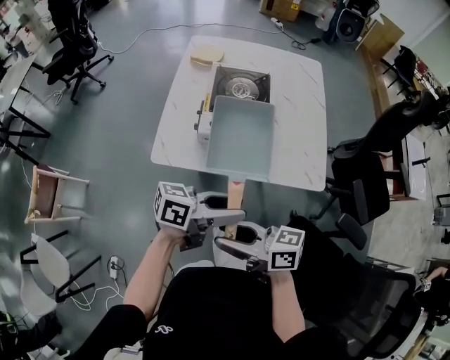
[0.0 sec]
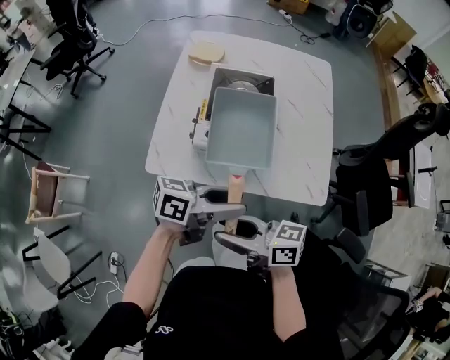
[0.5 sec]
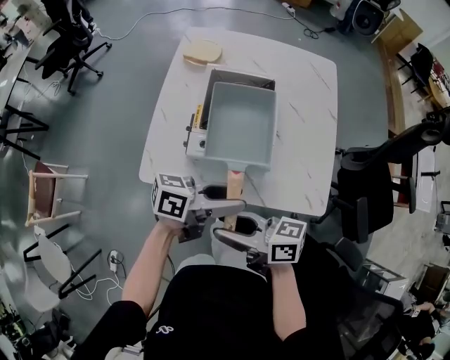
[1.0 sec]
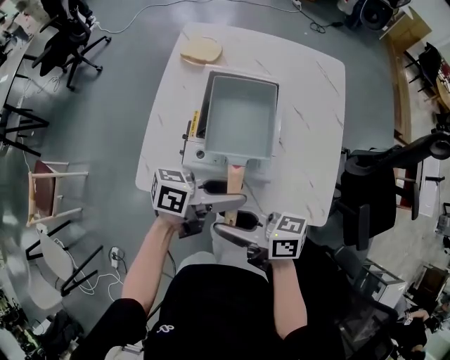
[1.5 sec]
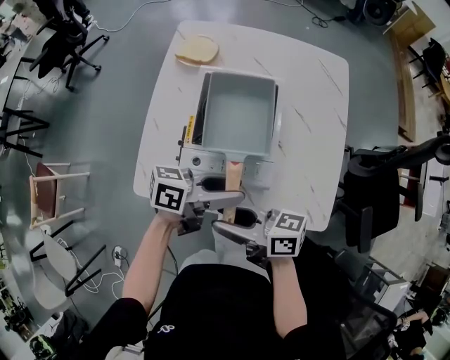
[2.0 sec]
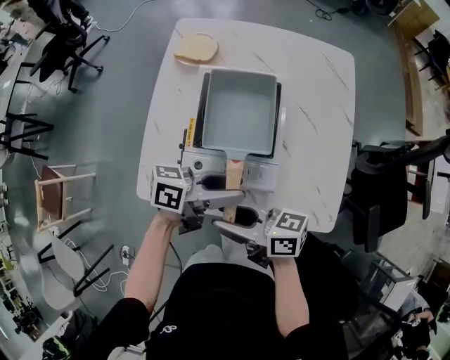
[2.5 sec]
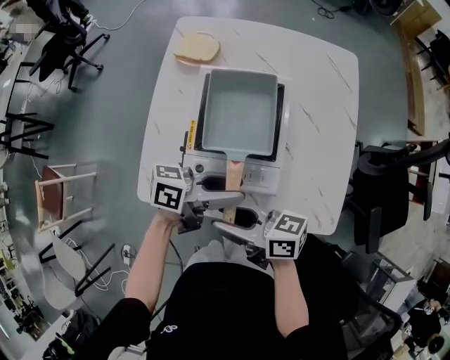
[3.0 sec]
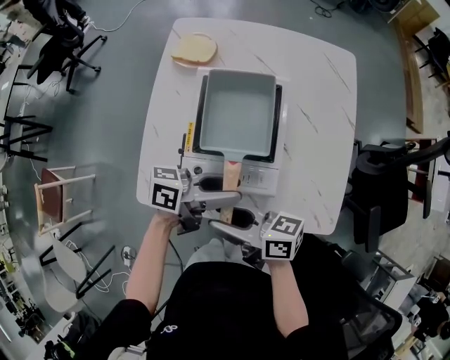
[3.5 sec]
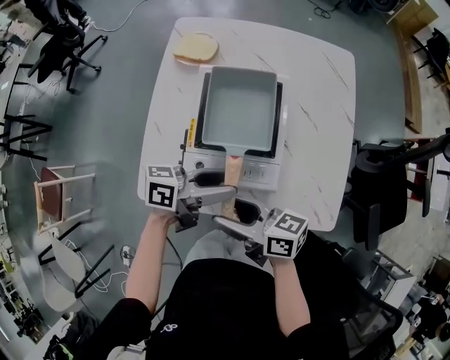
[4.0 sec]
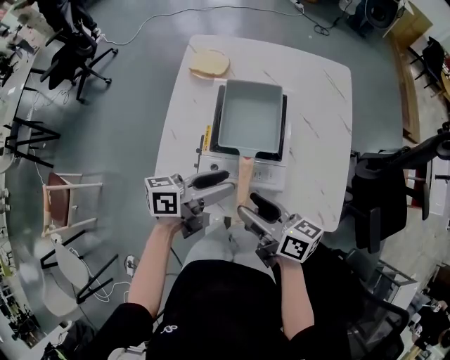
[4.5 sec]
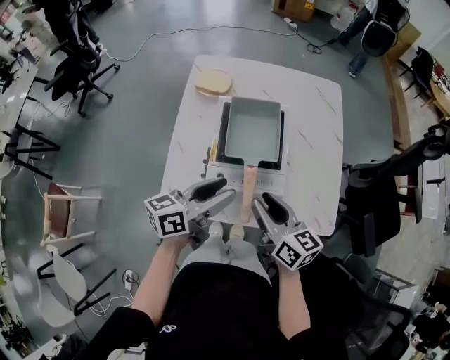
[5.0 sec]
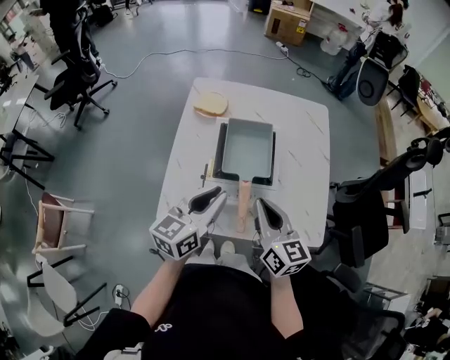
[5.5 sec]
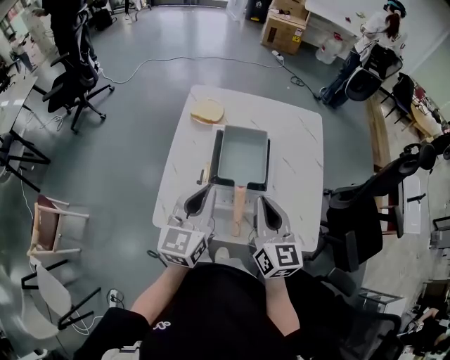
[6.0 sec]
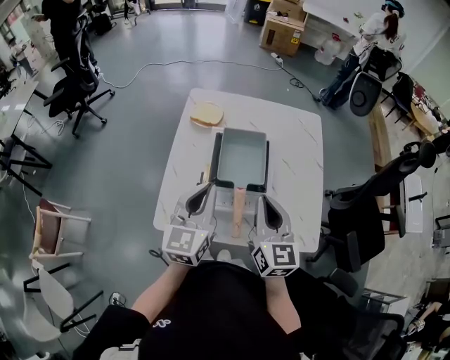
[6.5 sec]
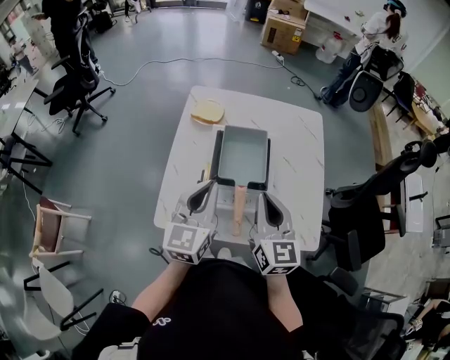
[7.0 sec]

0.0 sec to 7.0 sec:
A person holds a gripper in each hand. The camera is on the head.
0.0 sec to 2.0 sec: The left gripper ends up roughly 25 cm from where it was, while the right gripper ends up some 25 cm from where it was.
2.0 sec to 3.5 sec: The grippers move only a little.
3.5 sec to 5.0 sec: The left gripper changes place by about 10 cm, and rotates some 30 degrees. The right gripper changes place by about 10 cm, and changes its angle by about 40 degrees.
5.0 sec to 7.0 sec: The grippers both shift upward by approximately 10 cm. The left gripper changes its angle by roughly 50 degrees, and closes up. Meanwhile the right gripper rotates approximately 30 degrees, and closes its fingers.

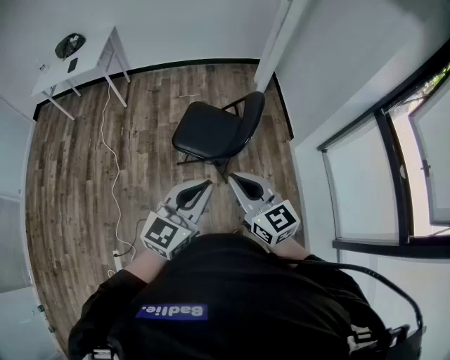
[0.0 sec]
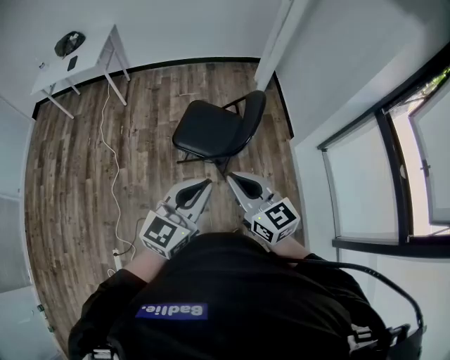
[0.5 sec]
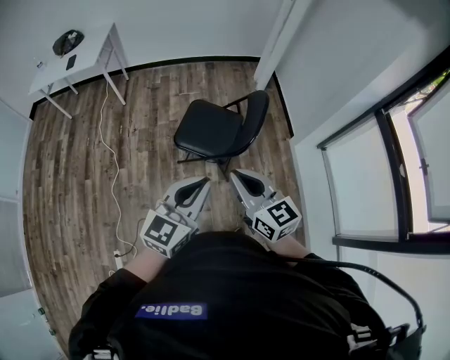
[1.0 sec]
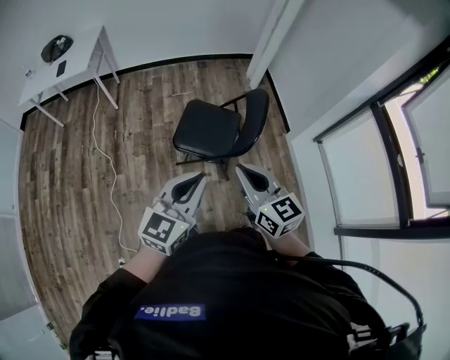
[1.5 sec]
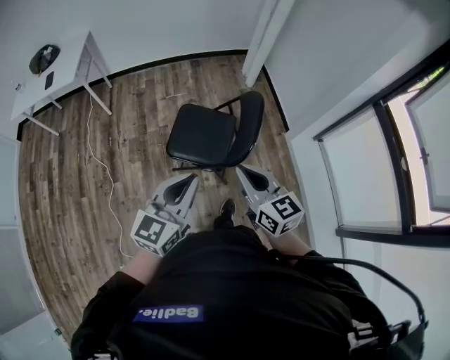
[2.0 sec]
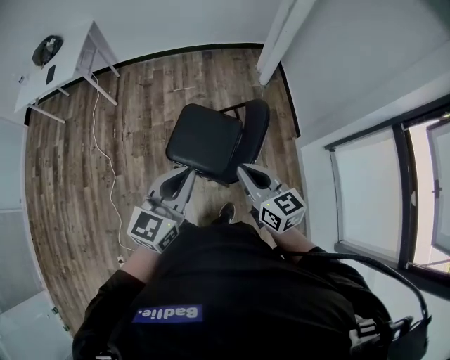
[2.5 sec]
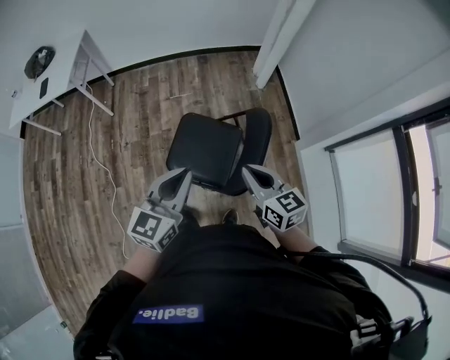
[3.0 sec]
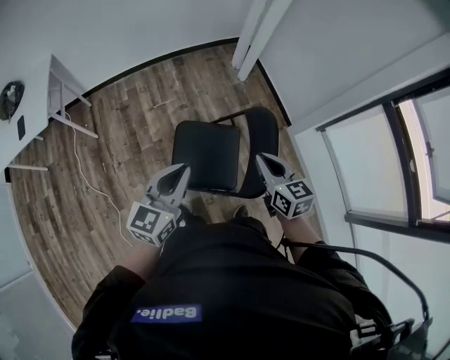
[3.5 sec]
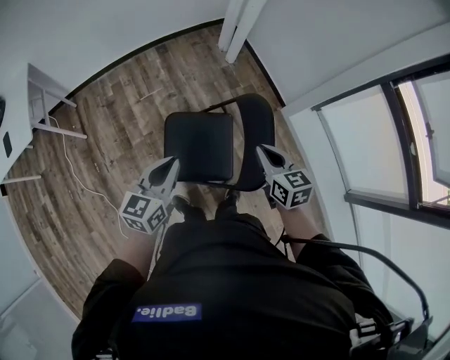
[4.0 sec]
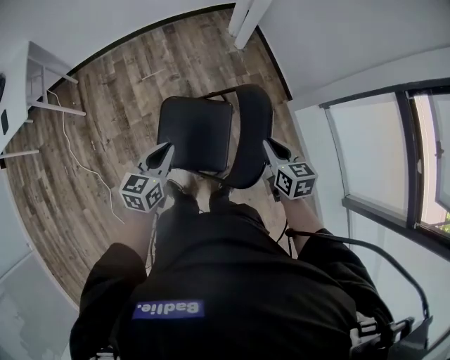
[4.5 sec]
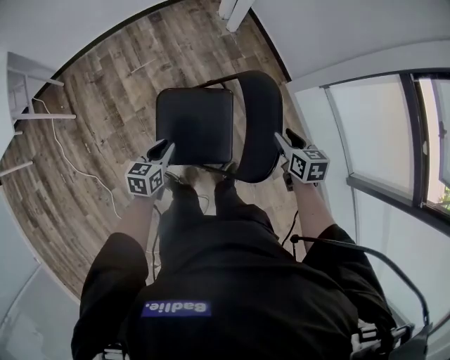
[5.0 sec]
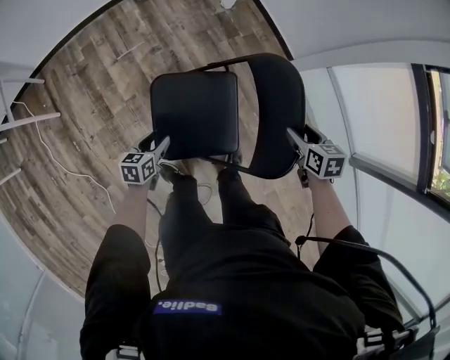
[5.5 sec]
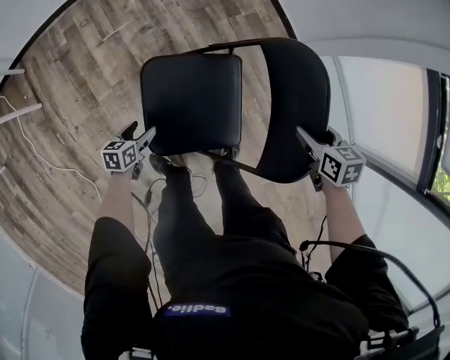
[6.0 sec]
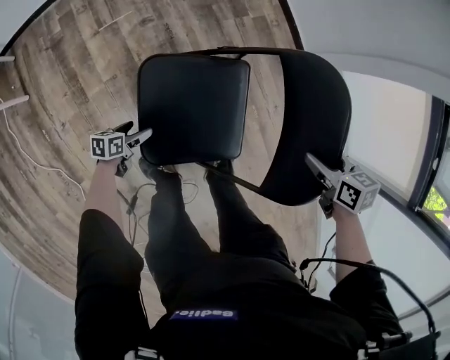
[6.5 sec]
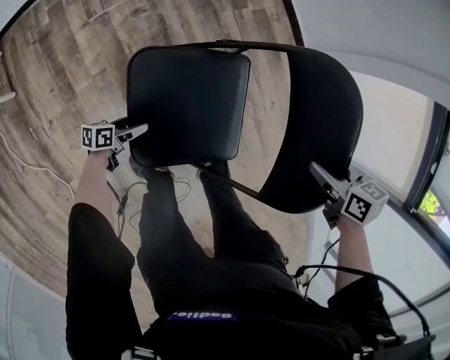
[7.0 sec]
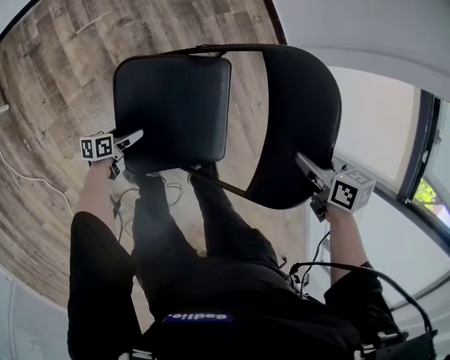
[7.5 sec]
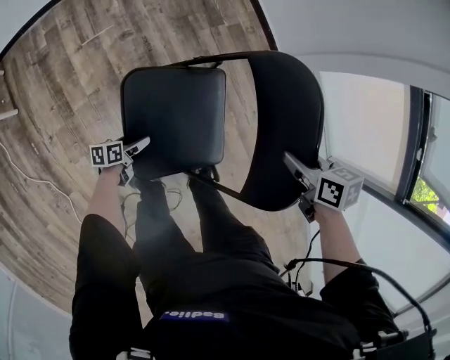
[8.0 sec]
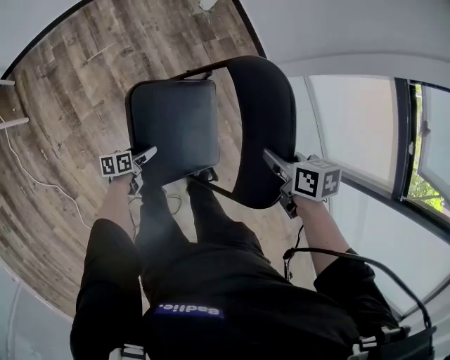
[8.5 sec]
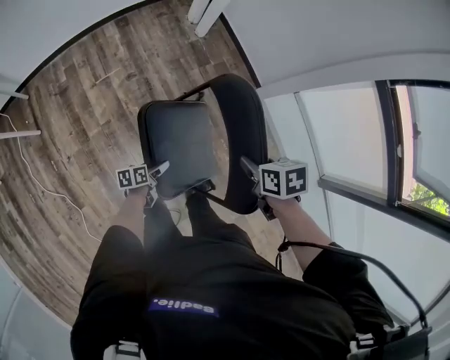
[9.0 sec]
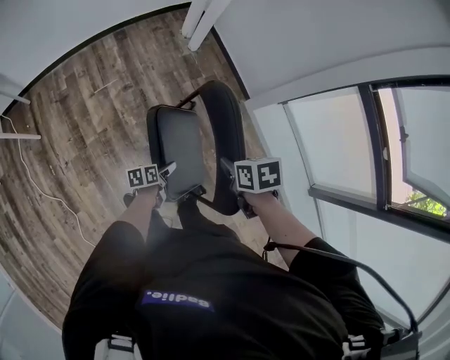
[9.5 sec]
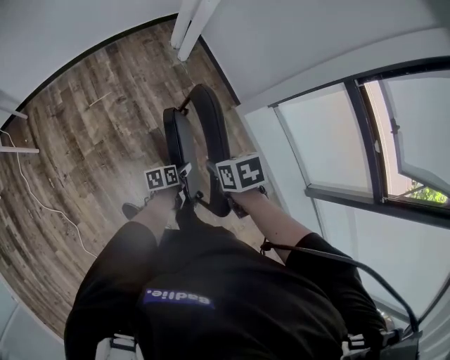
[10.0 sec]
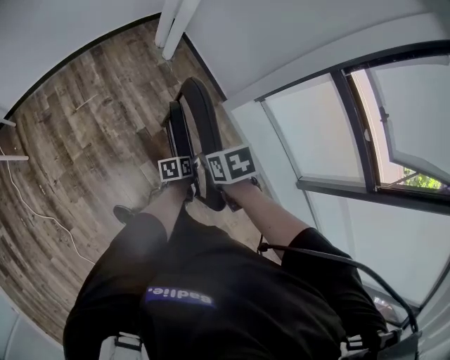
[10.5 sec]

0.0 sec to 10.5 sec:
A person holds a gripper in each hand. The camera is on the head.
0.0 sec to 2.0 sec: The right gripper is displaced forward by roughly 15 cm, while the left gripper moves forward and to the left, roughly 15 cm.
2.0 sec to 4.0 sec: The right gripper moves forward and downward, approximately 35 cm, and changes its angle by about 30 degrees, while the left gripper moves forward, approximately 35 cm.
4.0 sec to 6.5 sec: The right gripper travels downward by roughly 30 cm, tips its fingers downward by some 30 degrees, and opens; the left gripper moves downward, approximately 60 cm, changes its angle by approximately 50 degrees, and opens its fingers.
6.5 sec to 8.5 sec: The left gripper heads to the right and upward, covering about 15 cm, while the right gripper heads upward, covering about 10 cm, and closes its fingers.
8.5 sec to 10.5 sec: The left gripper heads to the right and upward, covering about 40 cm, and closes up. The right gripper is displaced upward by about 15 cm.

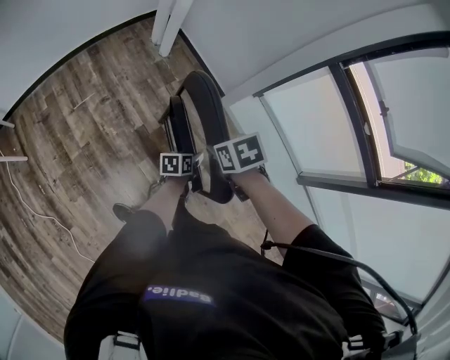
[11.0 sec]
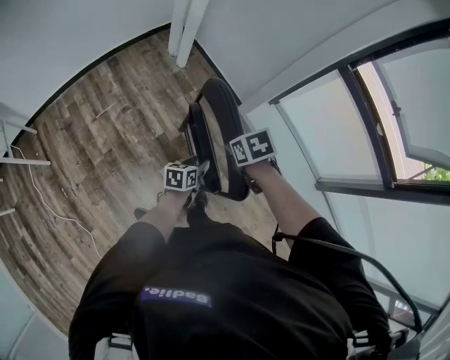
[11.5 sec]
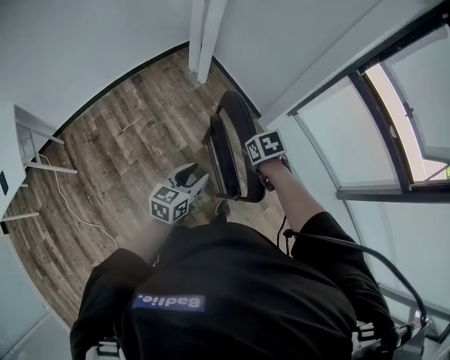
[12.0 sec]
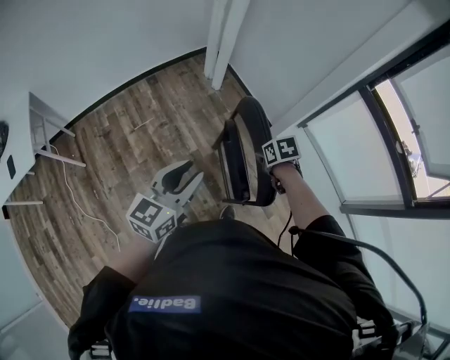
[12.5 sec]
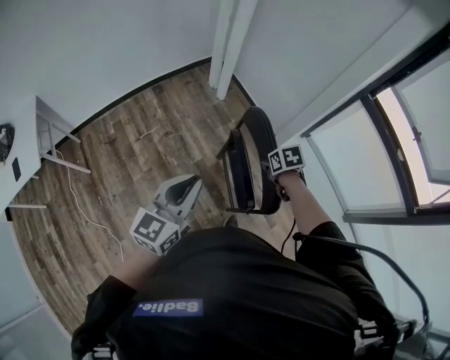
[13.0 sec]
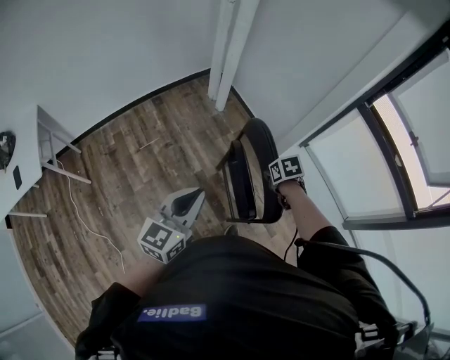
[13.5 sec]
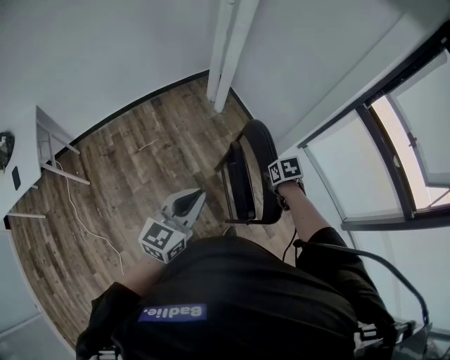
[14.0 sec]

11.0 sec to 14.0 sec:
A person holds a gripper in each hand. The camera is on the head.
11.0 sec to 12.5 sec: The left gripper is displaced upward and to the left by about 40 cm, and changes its angle by approximately 50 degrees.
12.5 sec to 14.0 sec: The grippers make only small movements.

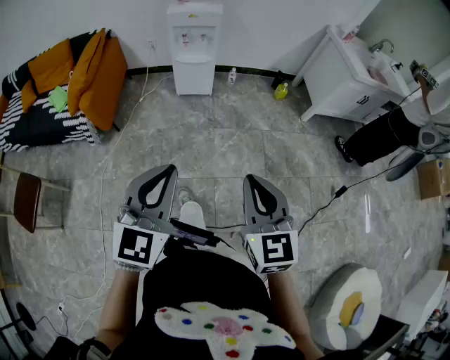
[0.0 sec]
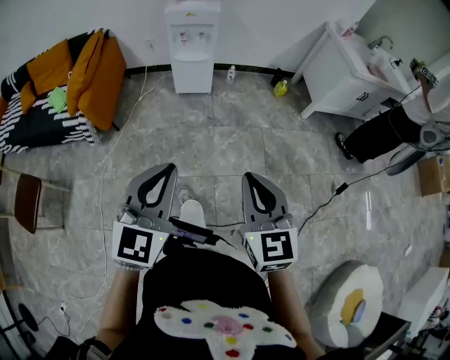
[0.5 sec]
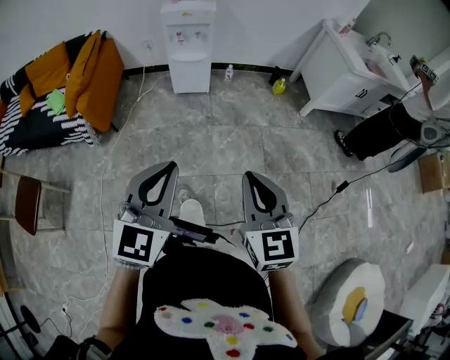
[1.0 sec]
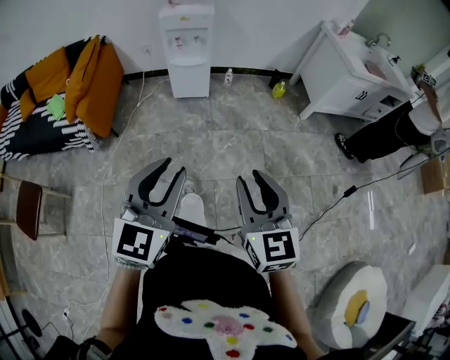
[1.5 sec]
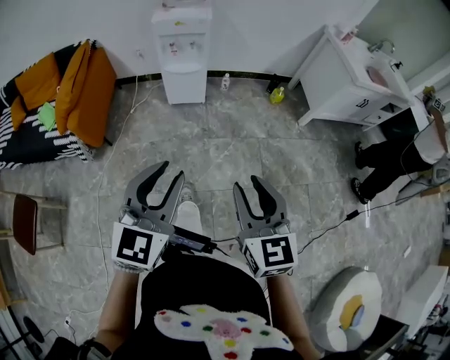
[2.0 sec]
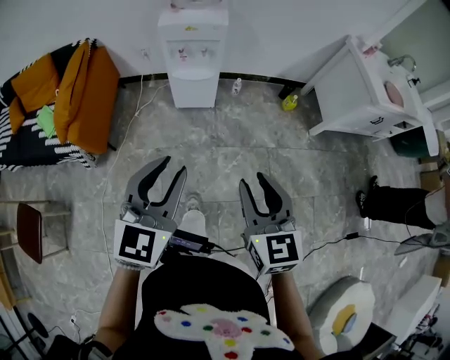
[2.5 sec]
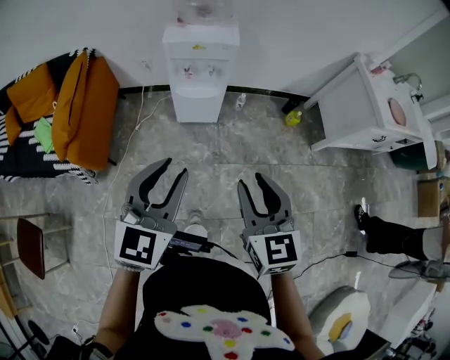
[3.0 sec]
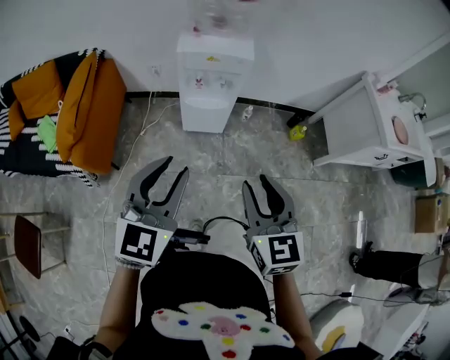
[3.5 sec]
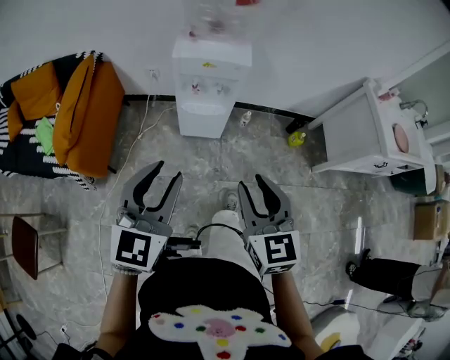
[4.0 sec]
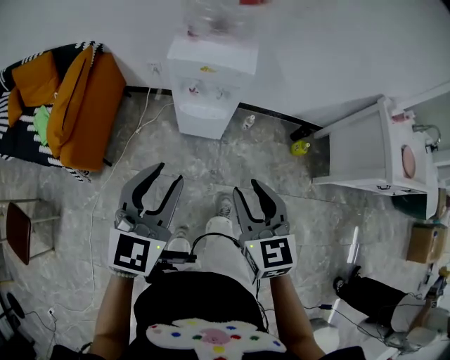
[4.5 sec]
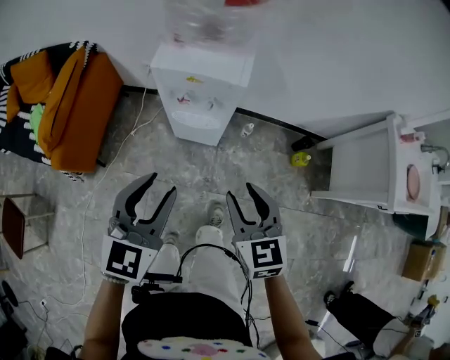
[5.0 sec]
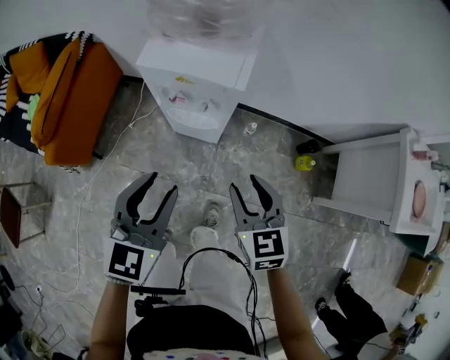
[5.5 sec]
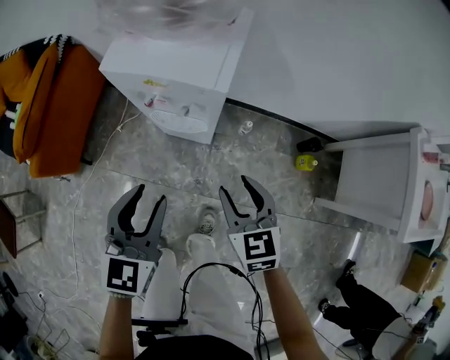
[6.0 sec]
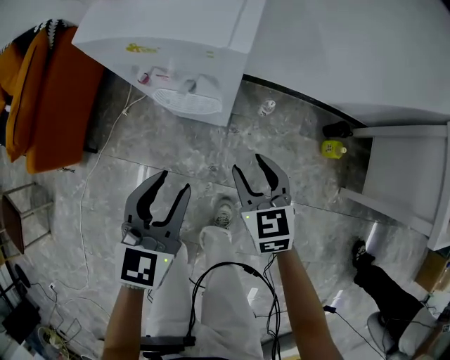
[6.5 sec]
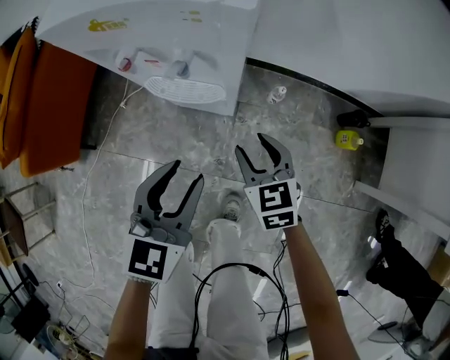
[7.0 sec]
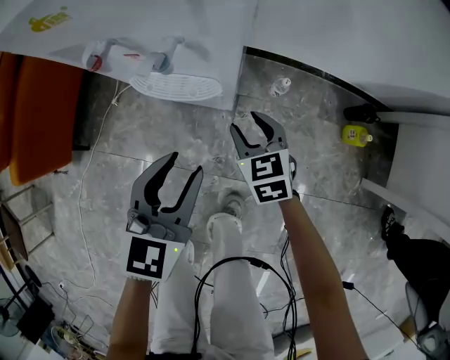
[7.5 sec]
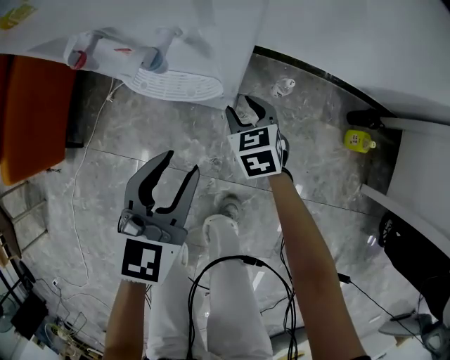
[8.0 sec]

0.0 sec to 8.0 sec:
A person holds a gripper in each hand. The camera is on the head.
0.0 sec to 2.0 sec: Both grippers travel together forward, about 10 cm. The right gripper opens.
2.0 sec to 4.0 sec: The two grippers go roughly 30 cm forward.
4.0 sec to 6.0 sec: Both grippers travel together forward, downward and to the right, some 35 cm. The left gripper rotates roughly 20 degrees.
6.0 sec to 8.0 sec: The left gripper travels downward by approximately 25 cm, while the right gripper moves downward and forward, roughly 40 cm.
